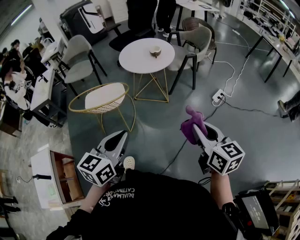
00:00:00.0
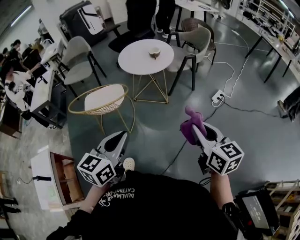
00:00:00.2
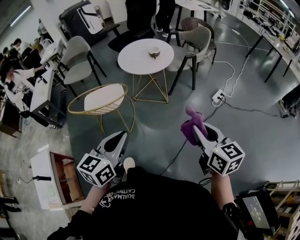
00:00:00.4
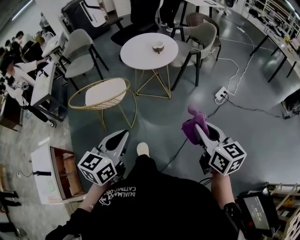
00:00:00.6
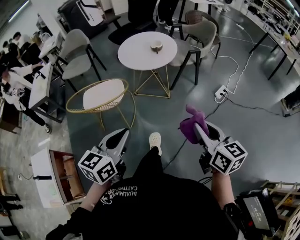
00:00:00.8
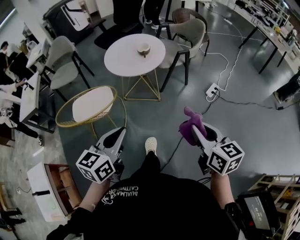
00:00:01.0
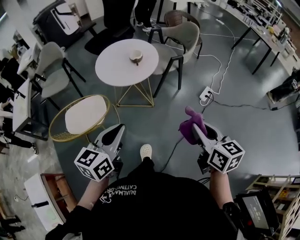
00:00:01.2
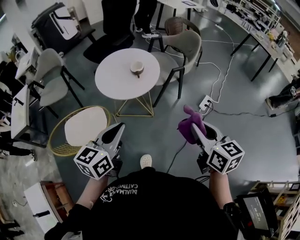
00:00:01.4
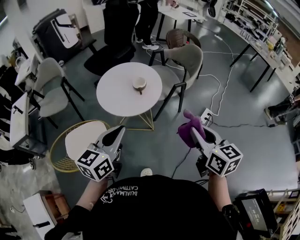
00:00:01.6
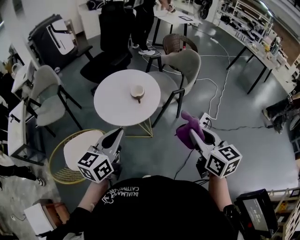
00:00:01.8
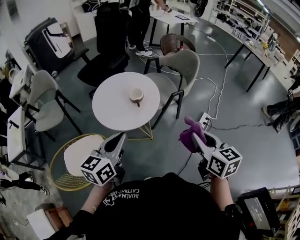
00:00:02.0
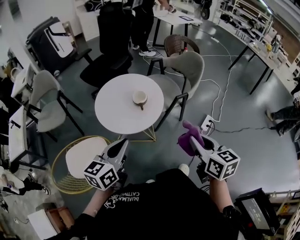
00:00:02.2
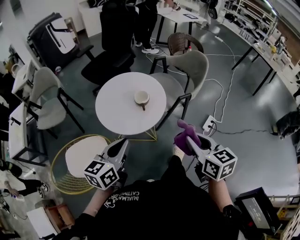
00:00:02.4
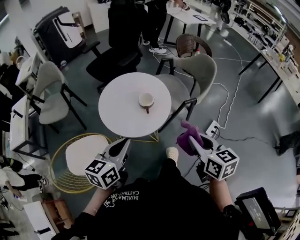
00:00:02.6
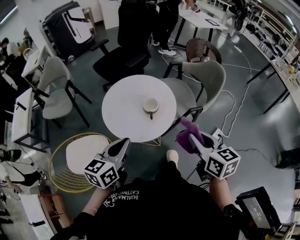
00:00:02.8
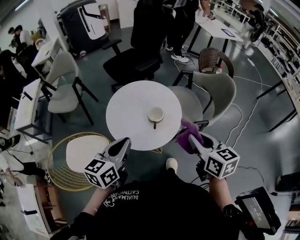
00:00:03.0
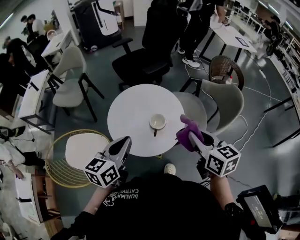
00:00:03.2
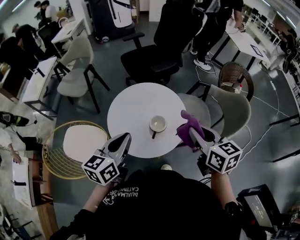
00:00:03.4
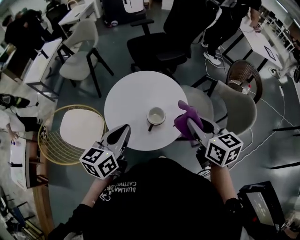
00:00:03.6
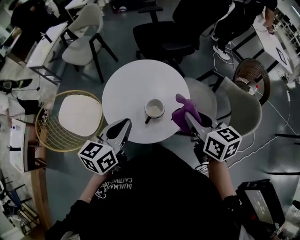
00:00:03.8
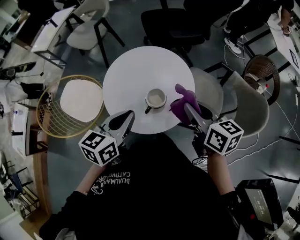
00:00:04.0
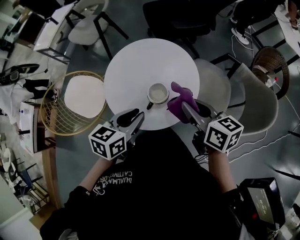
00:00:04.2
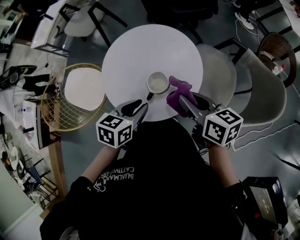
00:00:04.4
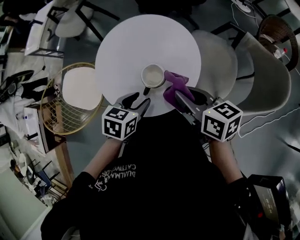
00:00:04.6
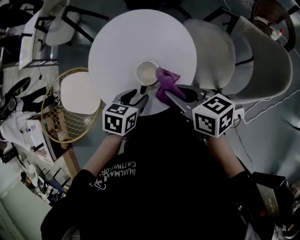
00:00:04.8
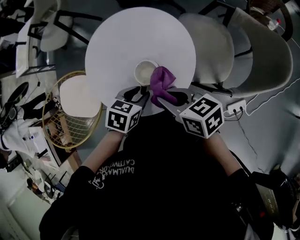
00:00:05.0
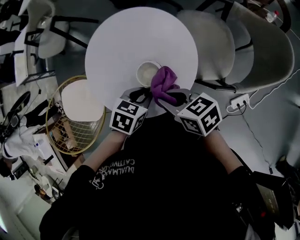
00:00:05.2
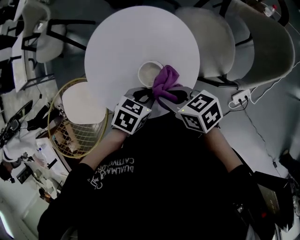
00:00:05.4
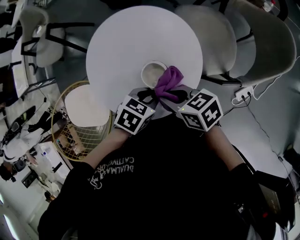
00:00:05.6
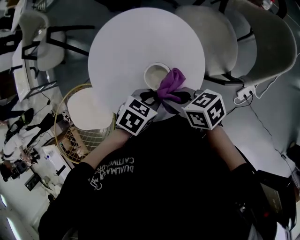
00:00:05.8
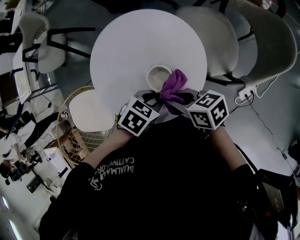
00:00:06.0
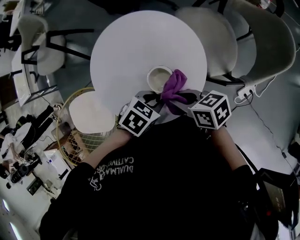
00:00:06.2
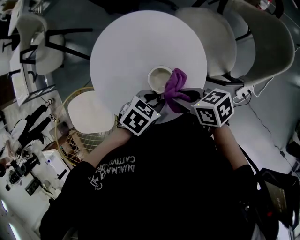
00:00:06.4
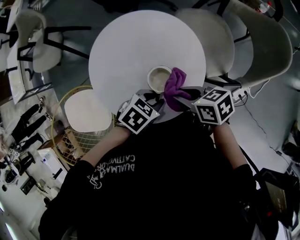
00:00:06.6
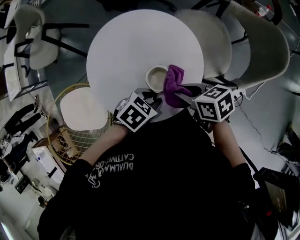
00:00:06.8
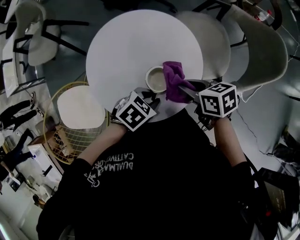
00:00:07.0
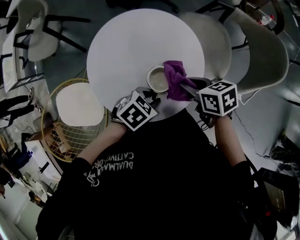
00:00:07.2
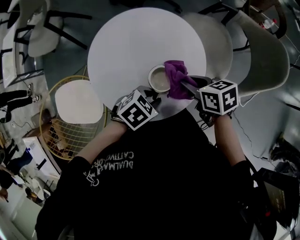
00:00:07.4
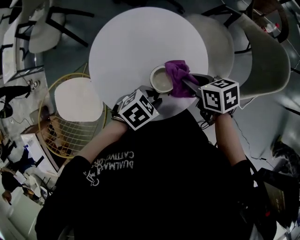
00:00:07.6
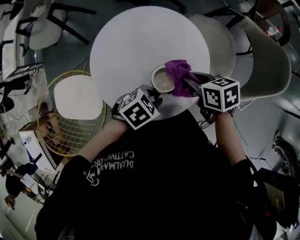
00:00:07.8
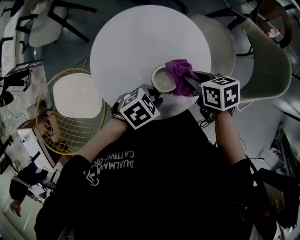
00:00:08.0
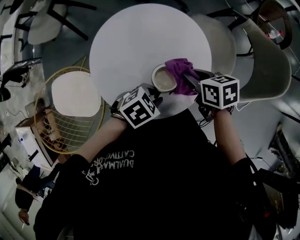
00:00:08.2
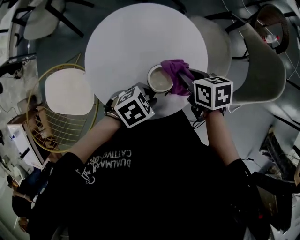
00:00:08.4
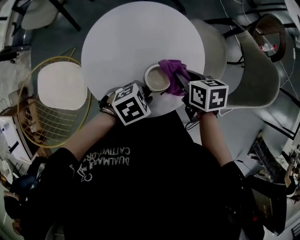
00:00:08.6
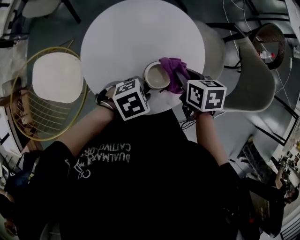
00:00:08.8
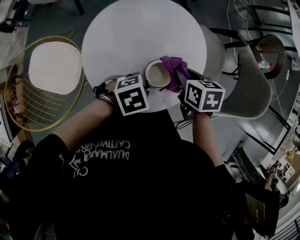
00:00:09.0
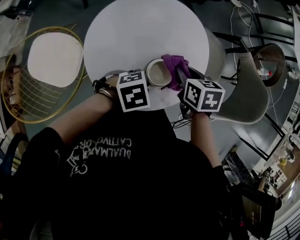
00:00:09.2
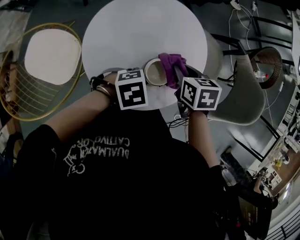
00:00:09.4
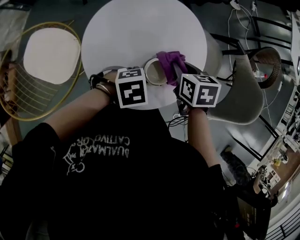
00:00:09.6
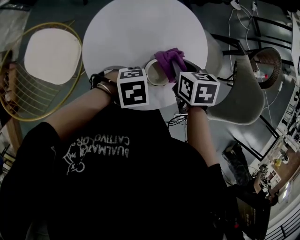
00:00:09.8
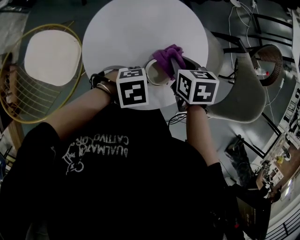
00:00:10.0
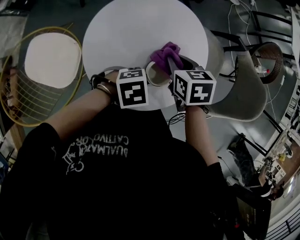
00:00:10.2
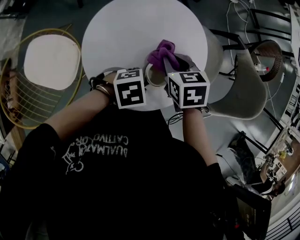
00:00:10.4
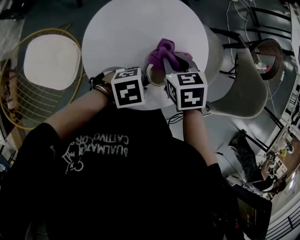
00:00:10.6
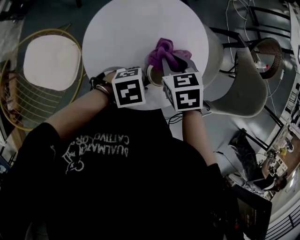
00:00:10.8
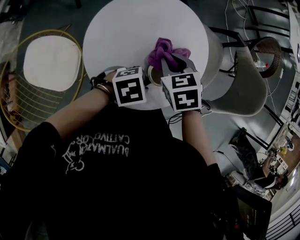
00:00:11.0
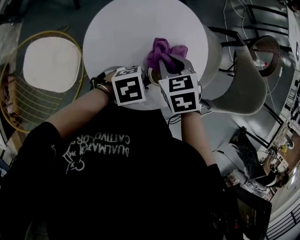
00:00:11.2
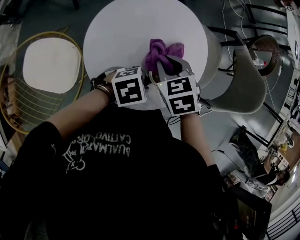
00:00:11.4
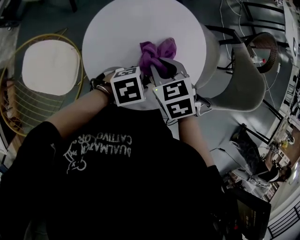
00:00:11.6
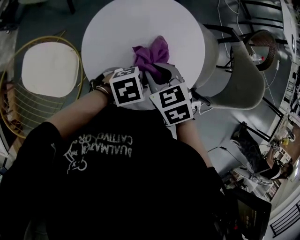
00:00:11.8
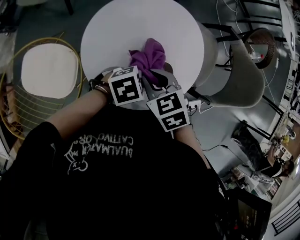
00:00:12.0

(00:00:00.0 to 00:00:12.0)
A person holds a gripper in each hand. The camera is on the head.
00:00:00.0 - 00:00:01.6: Both grippers travel together forward, about 40 cm.
00:00:01.6 - 00:00:03.0: Both grippers move forward, approximately 25 cm.
00:00:03.0 - 00:00:04.4: The right gripper ends up about 25 cm from where it was, and swivels about 40 degrees; the left gripper changes place by some 25 cm, rotates some 30 degrees, and opens up.
00:00:04.4 - 00:00:06.0: Both grippers move downward, about 10 cm. The left gripper changes its angle by some 50 degrees, and opens, then closes once more.
00:00:06.0 - 00:00:07.6: The right gripper ends up approximately 10 cm from where it was.
00:00:07.6 - 00:00:09.0: The right gripper shifts by some 5 cm.
00:00:09.0 - 00:00:10.4: The right gripper ends up approximately 10 cm from where it was.
00:00:10.4 - 00:00:12.0: The right gripper shifts by some 10 cm.

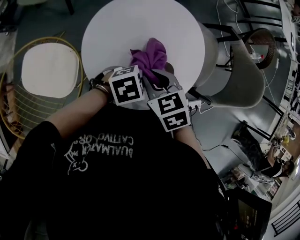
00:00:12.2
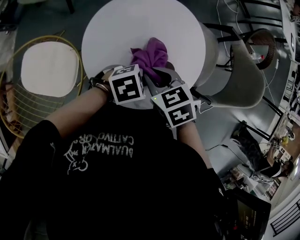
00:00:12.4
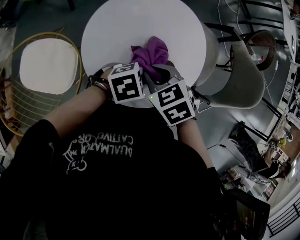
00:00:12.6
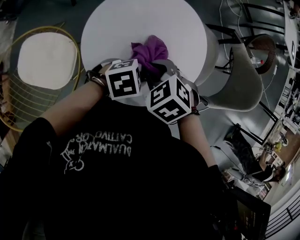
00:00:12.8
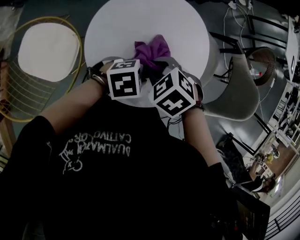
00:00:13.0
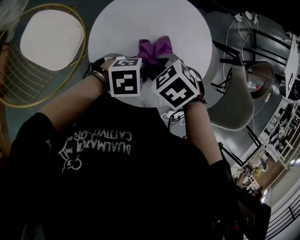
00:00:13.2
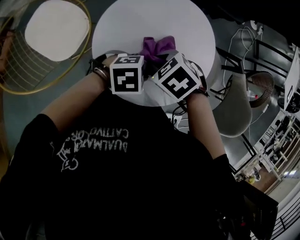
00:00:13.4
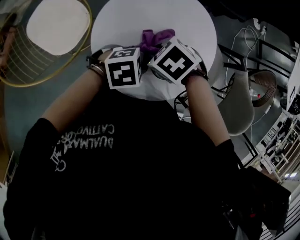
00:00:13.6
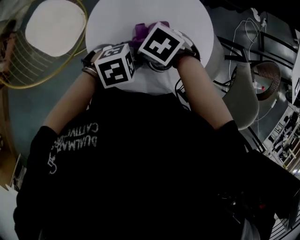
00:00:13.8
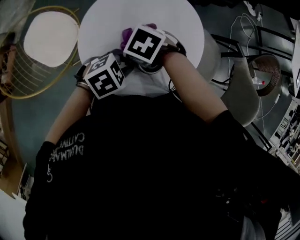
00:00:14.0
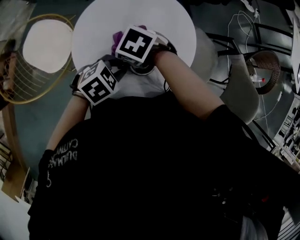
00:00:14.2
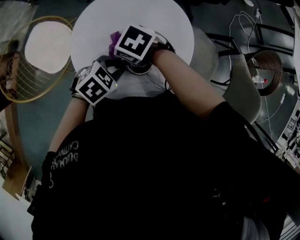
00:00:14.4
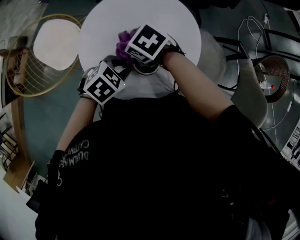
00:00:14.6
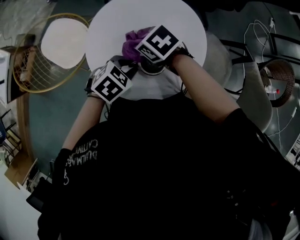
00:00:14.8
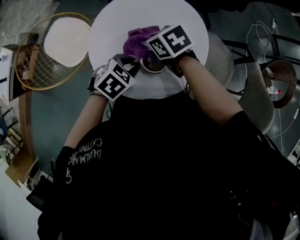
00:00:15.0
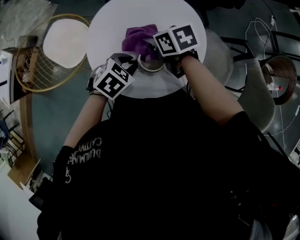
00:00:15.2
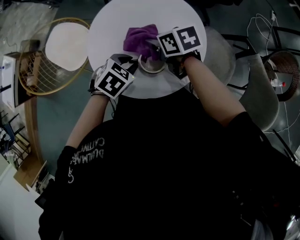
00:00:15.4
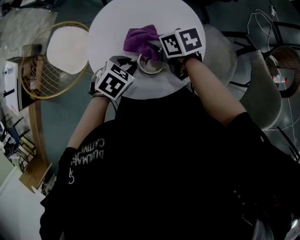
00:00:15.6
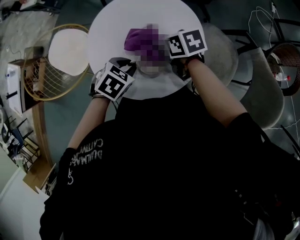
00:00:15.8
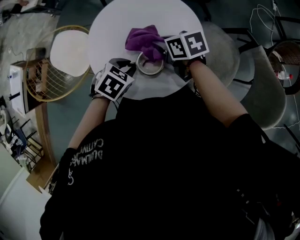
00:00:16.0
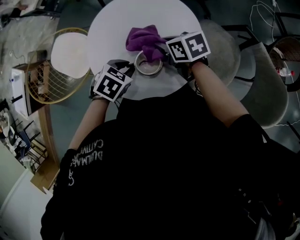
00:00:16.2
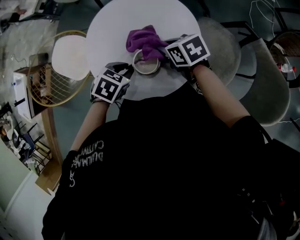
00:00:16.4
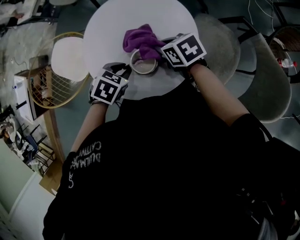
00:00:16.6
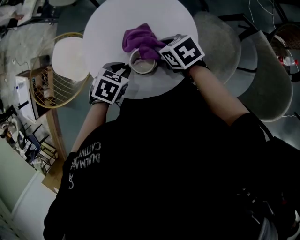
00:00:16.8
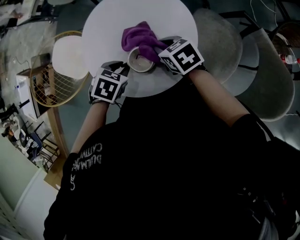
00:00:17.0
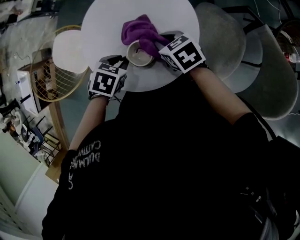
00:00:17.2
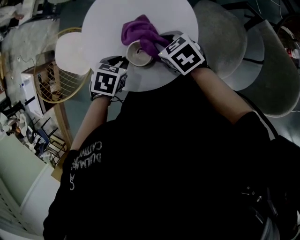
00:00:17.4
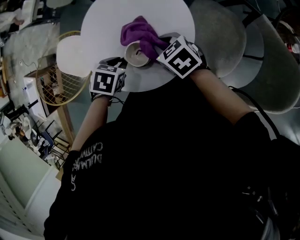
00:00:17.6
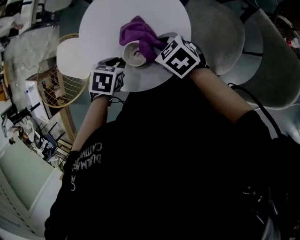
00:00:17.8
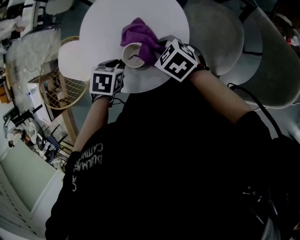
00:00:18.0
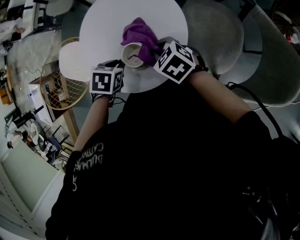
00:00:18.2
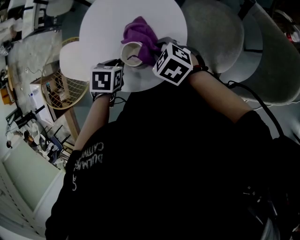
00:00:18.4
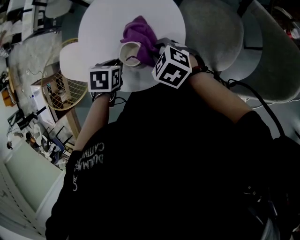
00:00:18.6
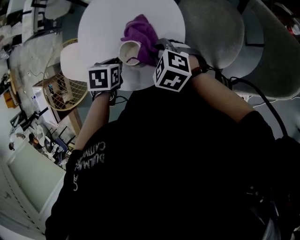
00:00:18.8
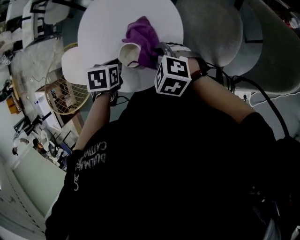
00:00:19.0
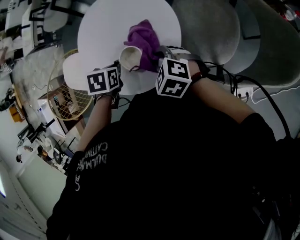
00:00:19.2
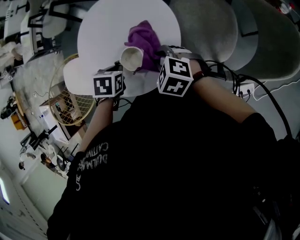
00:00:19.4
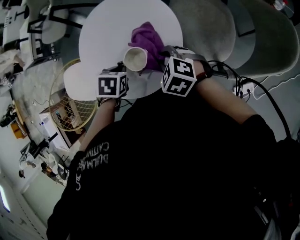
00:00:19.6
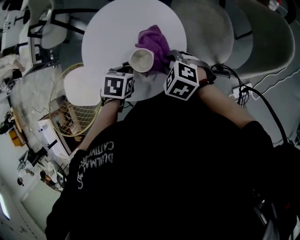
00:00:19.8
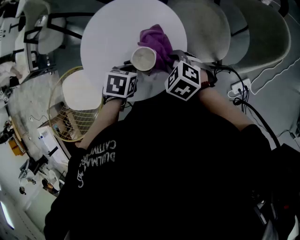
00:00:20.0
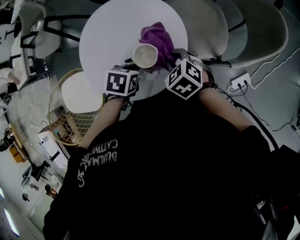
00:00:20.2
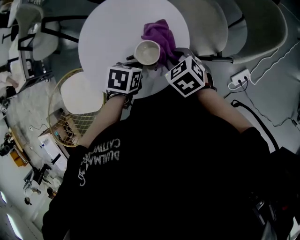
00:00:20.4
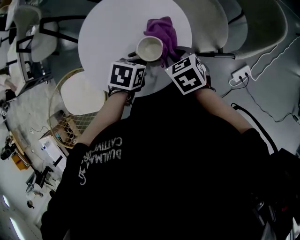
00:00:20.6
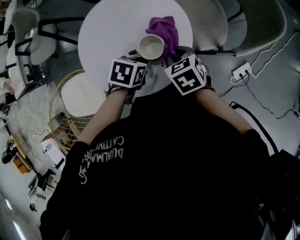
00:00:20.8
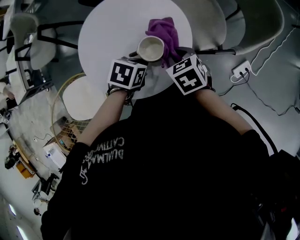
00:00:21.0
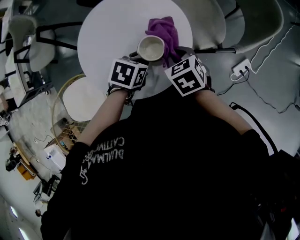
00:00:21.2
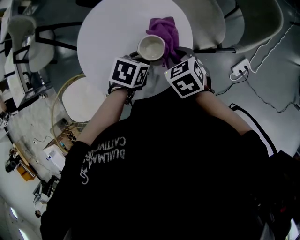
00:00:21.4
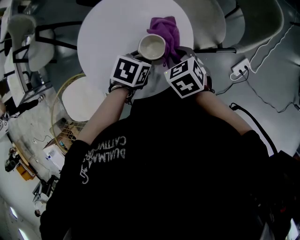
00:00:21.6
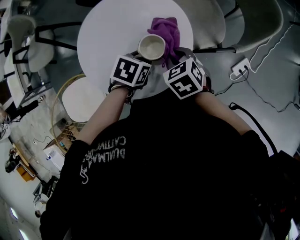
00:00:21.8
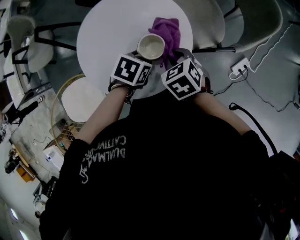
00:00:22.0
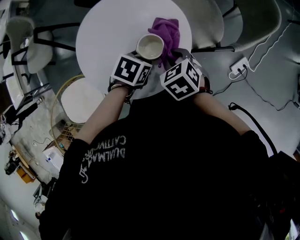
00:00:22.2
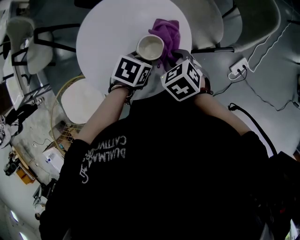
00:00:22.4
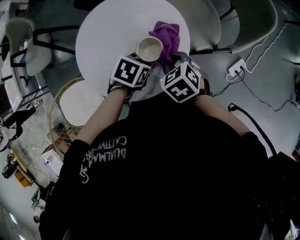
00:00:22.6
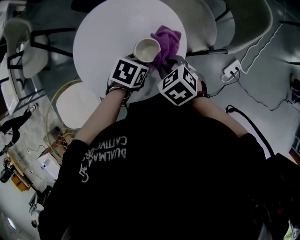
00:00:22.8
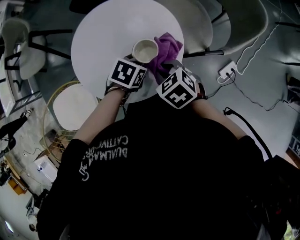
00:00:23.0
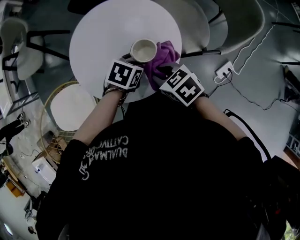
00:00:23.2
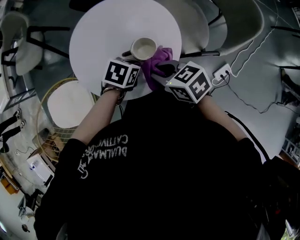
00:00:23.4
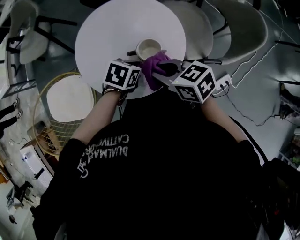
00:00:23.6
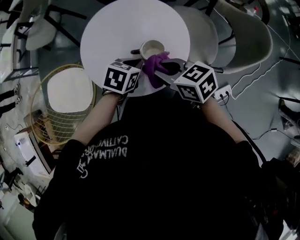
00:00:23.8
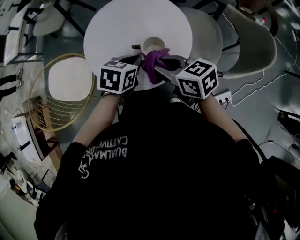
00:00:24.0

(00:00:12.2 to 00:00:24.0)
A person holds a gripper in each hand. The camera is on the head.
00:00:12.2 - 00:00:13.6: The right gripper swivels approximately 50 degrees.
00:00:13.6 - 00:00:15.2: The right gripper moves roughly 10 cm, and swivels roughly 50 degrees, while the left gripper rotates some 30 degrees.
00:00:15.2 - 00:00:16.6: The right gripper moves approximately 10 cm.
00:00:16.6 - 00:00:18.2: The right gripper ends up about 5 cm from where it was.
00:00:18.2 - 00:00:19.6: The left gripper closes up. Meanwhile the right gripper moves about 5 cm.
00:00:19.6 - 00:00:21.0: The right gripper moves approximately 5 cm, and rolls clockwise, seen from behind, by approximately 40 degrees. Meanwhile the left gripper turns by roughly 30 degrees.
00:00:21.0 - 00:00:22.6: The grippers stay close to where they were, moving slightly.
00:00:22.6 - 00:00:24.0: Both grippers move upward, roughly 10 cm. The left gripper turns by about 40 degrees, while the right gripper tilts its fingers about 30 degrees upward.
